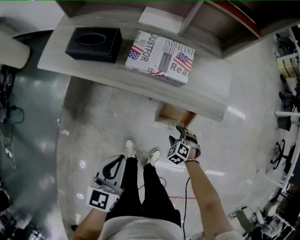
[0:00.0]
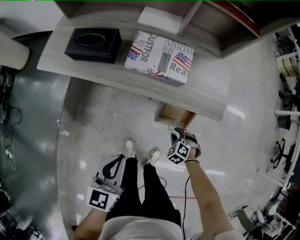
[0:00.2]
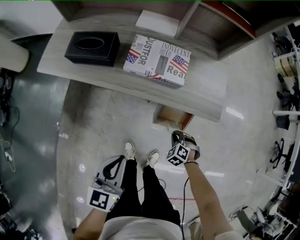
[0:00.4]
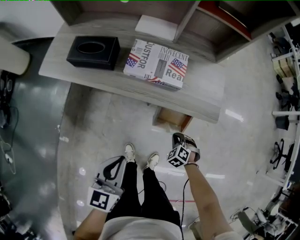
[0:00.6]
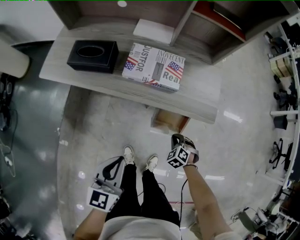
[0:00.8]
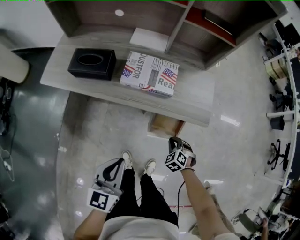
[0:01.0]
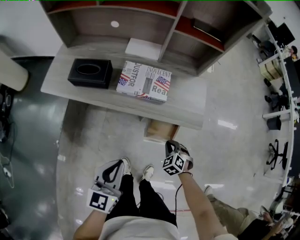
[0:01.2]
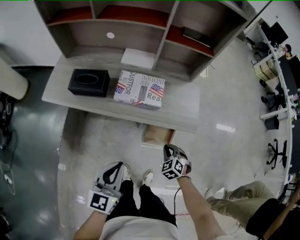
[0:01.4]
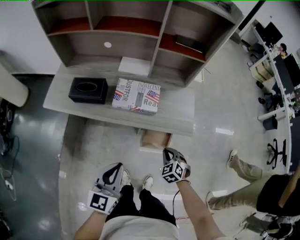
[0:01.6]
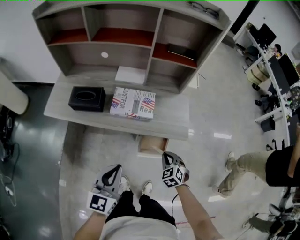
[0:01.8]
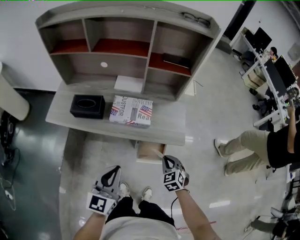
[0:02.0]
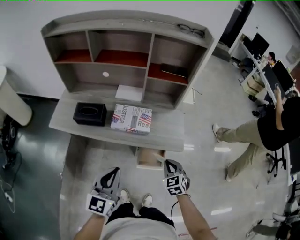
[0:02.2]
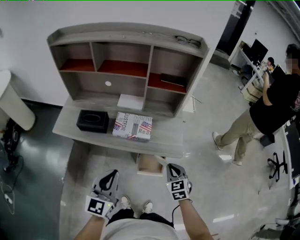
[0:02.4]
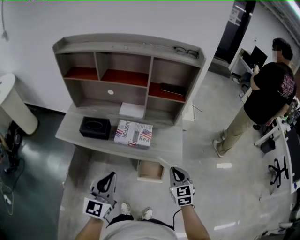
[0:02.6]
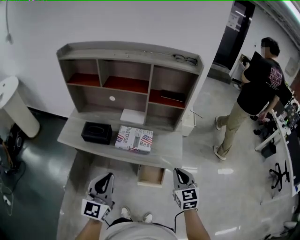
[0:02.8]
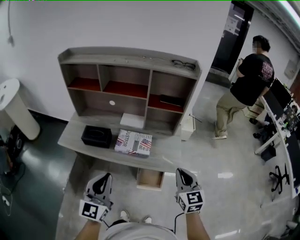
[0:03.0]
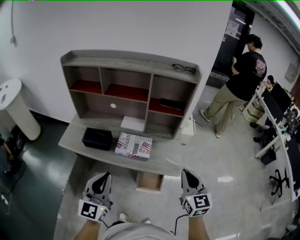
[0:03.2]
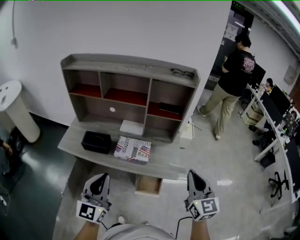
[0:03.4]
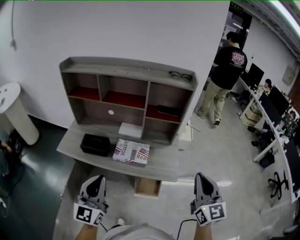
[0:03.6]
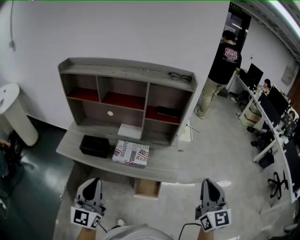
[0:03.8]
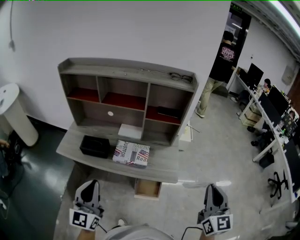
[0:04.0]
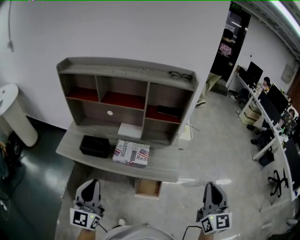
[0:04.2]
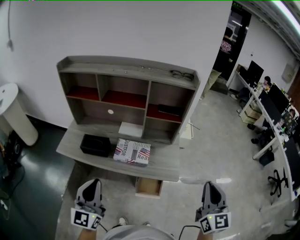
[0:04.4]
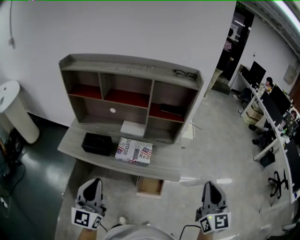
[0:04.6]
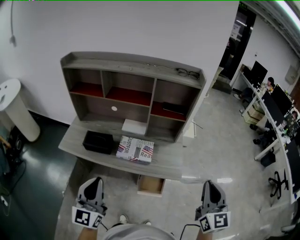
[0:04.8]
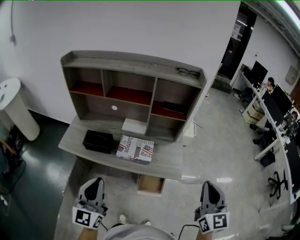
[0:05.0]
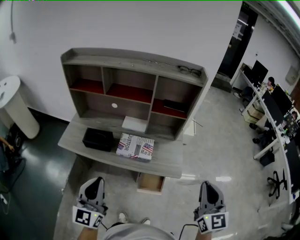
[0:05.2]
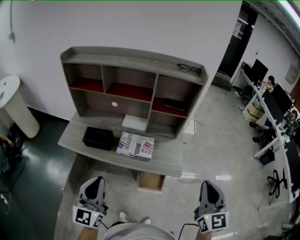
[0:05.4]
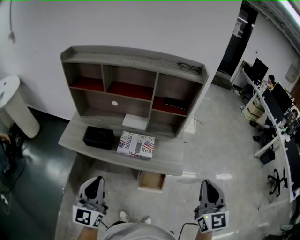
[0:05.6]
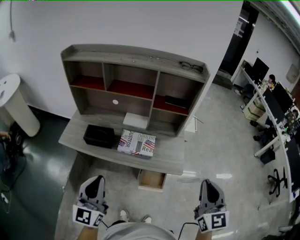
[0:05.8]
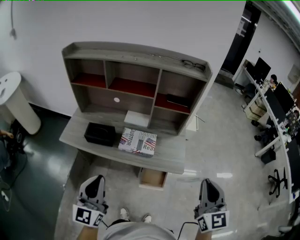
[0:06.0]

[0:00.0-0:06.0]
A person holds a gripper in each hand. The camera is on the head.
0:00.0 to 0:01.6: The left gripper goes approximately 10 cm upward; the right gripper moves upward, some 20 cm, rotates about 30 degrees, and closes up.
0:01.6 to 0:03.0: The right gripper moves upward, approximately 35 cm, and points its fingers some 40 degrees further upward. Meanwhile the left gripper is displaced upward by approximately 15 cm, and turns by about 20 degrees.
0:03.0 to 0:04.4: The left gripper shifts by approximately 5 cm; the right gripper travels upward, to the right and backward by approximately 15 cm.
0:04.4 to 0:06.0: The right gripper ends up approximately 5 cm from where it was.

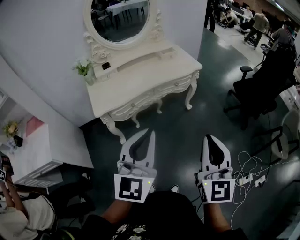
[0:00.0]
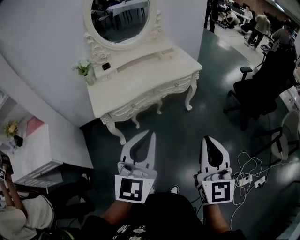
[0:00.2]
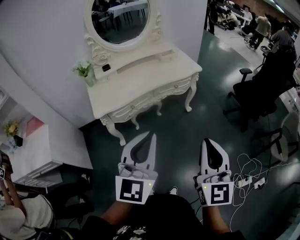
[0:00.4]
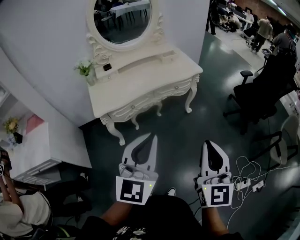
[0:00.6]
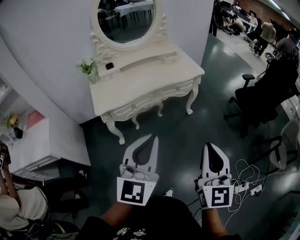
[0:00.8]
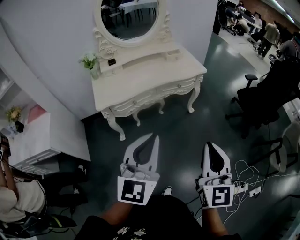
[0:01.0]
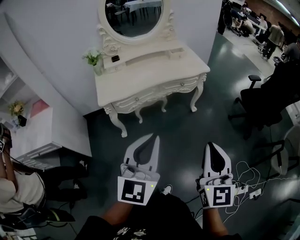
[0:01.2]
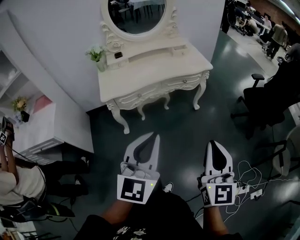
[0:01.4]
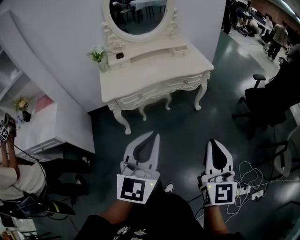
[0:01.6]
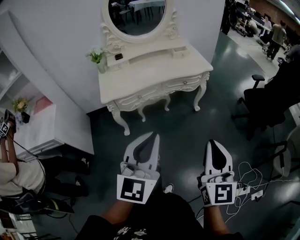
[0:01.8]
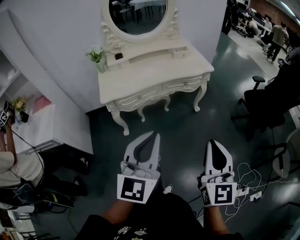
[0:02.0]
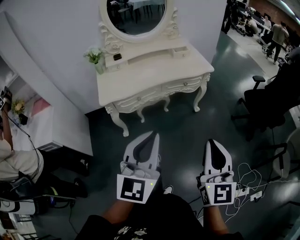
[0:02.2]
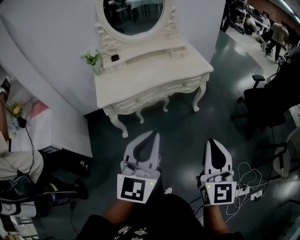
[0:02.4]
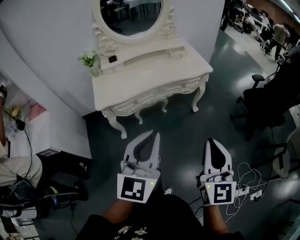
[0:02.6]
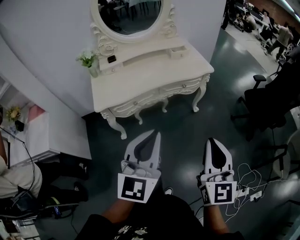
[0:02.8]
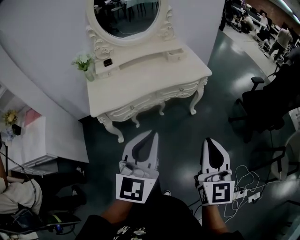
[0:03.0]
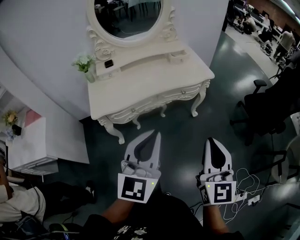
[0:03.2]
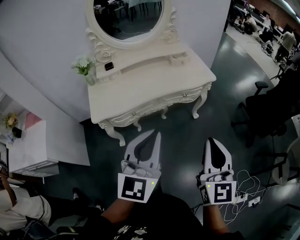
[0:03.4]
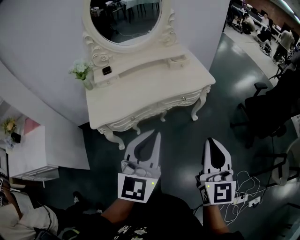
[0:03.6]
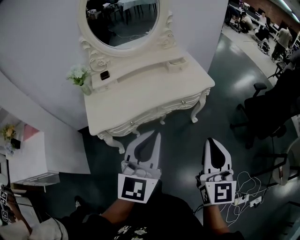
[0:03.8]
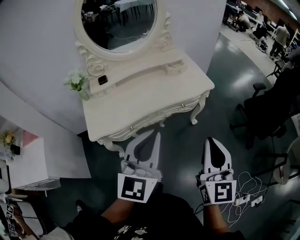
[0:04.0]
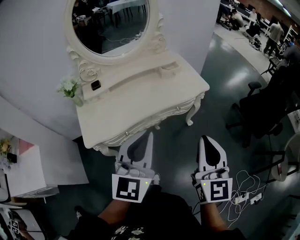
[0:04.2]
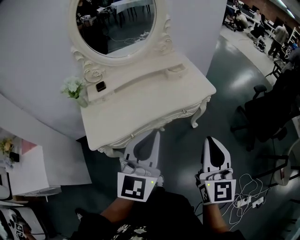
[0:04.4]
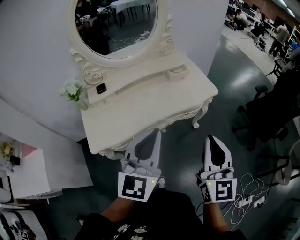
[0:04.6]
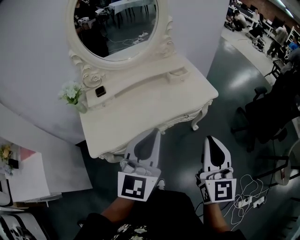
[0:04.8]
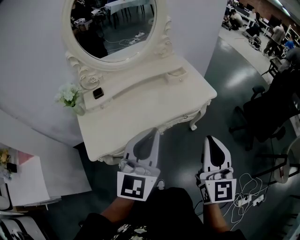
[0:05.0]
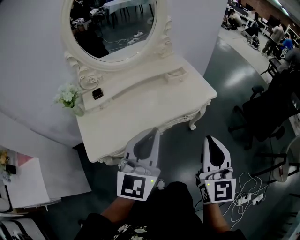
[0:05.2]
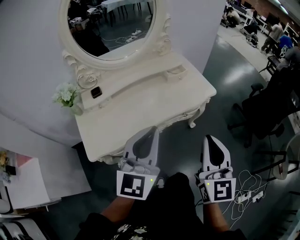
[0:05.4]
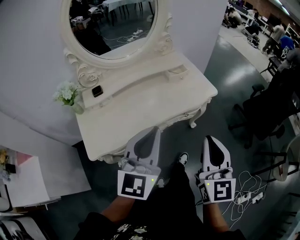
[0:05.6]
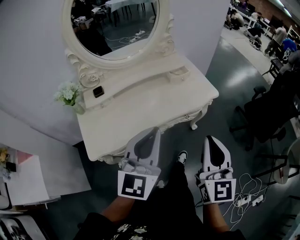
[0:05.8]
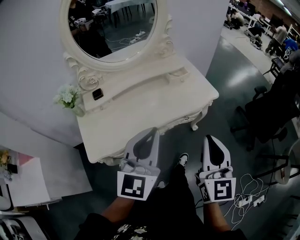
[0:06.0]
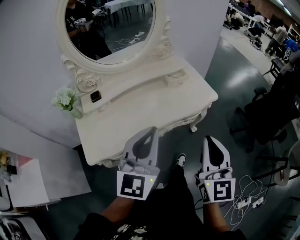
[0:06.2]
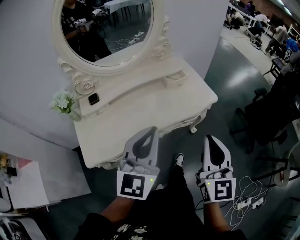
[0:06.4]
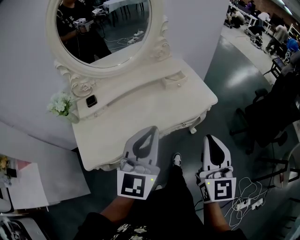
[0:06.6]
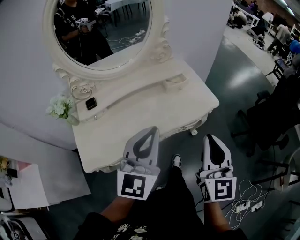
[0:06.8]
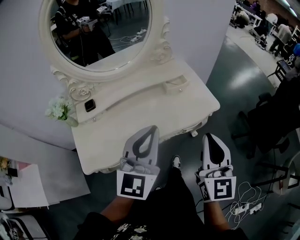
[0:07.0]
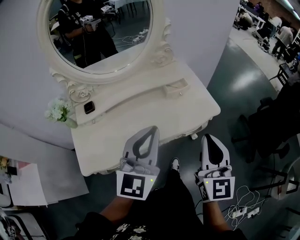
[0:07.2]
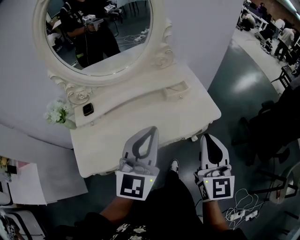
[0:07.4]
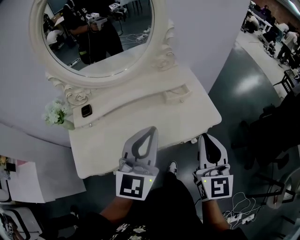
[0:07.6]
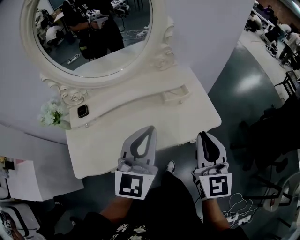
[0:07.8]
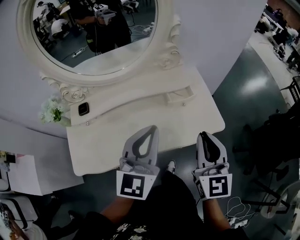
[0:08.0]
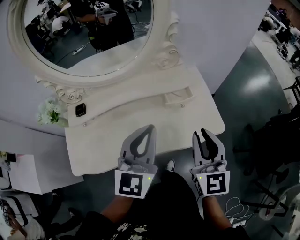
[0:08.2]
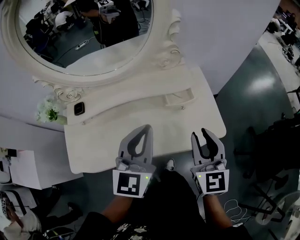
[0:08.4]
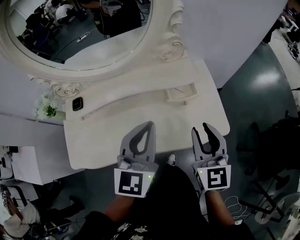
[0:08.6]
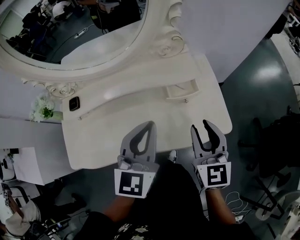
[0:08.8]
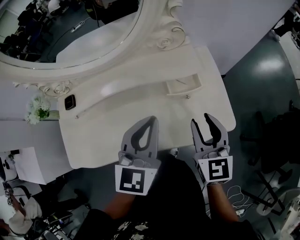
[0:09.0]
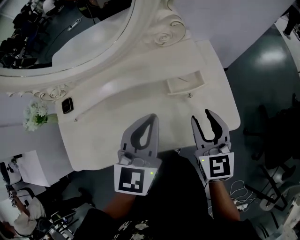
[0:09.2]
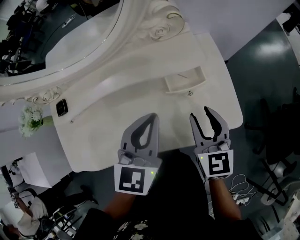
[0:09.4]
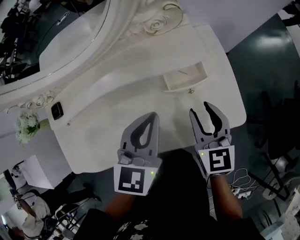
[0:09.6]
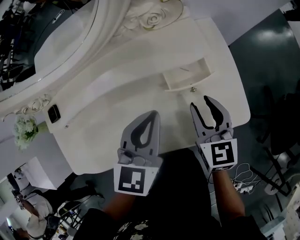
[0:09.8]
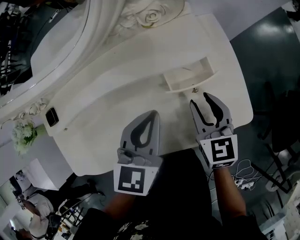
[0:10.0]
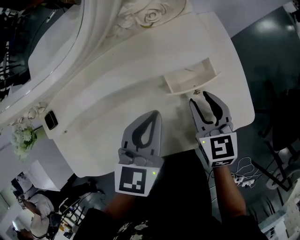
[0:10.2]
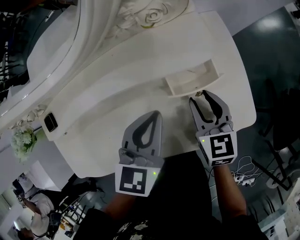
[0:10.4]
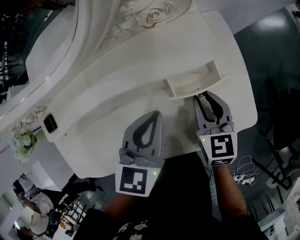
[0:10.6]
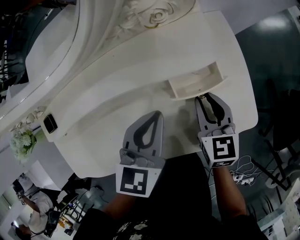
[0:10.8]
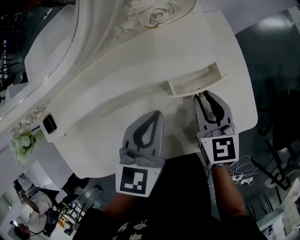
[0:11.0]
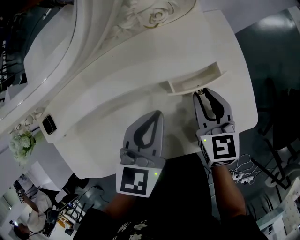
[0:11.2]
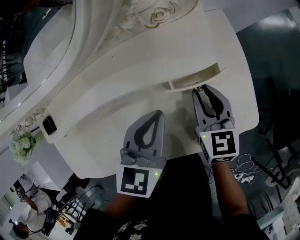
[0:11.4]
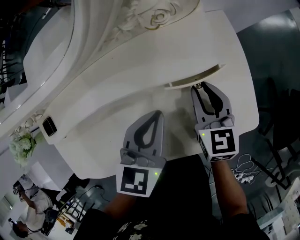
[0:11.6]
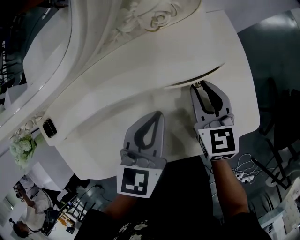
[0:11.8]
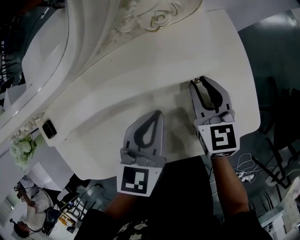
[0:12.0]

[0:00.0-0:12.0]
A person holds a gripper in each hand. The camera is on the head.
0:00.0 to 0:01.6: The right gripper shifts by approximately 5 cm, while the left gripper ends up about 5 cm from where it was.
0:01.6 to 0:03.0: Both grippers move forward, some 10 cm.
0:03.0 to 0:04.4: The grippers both shift forward by roughly 15 cm.
0:04.4 to 0:06.0: Both grippers travel together forward, about 5 cm.
0:06.0 to 0:07.6: Both grippers travel together forward, approximately 20 cm.
0:07.6 to 0:09.0: Both grippers move forward and downward, some 20 cm. The right gripper swivels approximately 20 degrees, and opens its fingers.
0:09.0 to 0:10.4: Both grippers travel together downward and forward, roughly 15 cm.
0:10.4 to 0:12.0: The right gripper shifts about 5 cm forward.

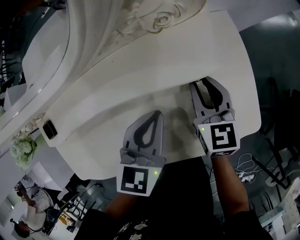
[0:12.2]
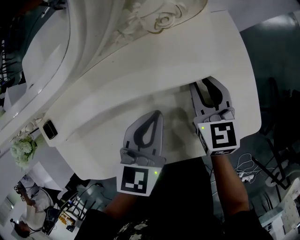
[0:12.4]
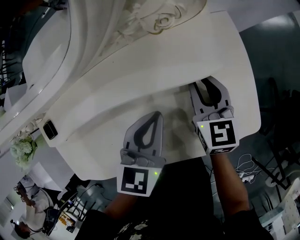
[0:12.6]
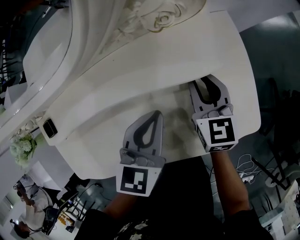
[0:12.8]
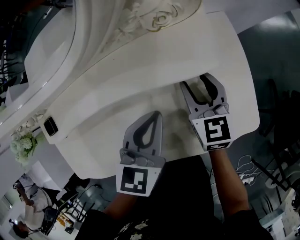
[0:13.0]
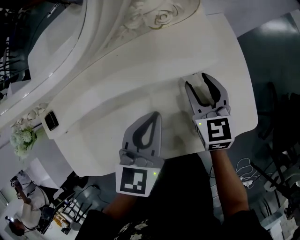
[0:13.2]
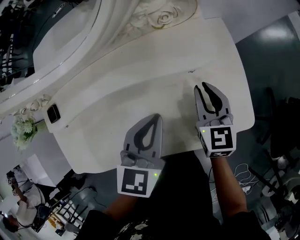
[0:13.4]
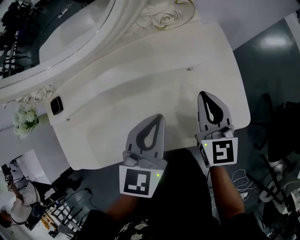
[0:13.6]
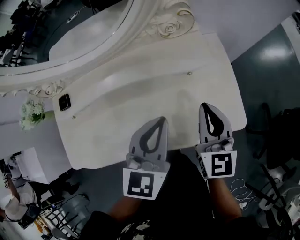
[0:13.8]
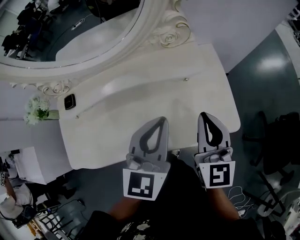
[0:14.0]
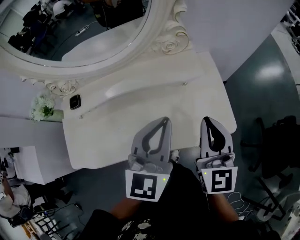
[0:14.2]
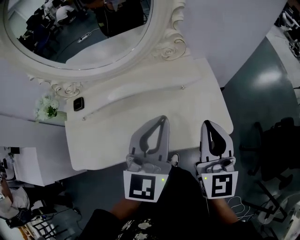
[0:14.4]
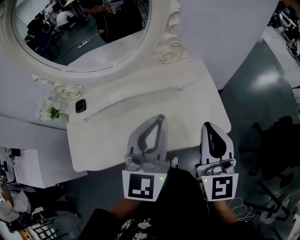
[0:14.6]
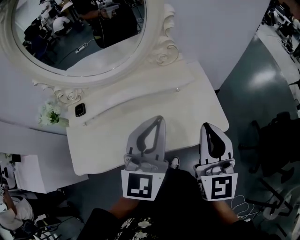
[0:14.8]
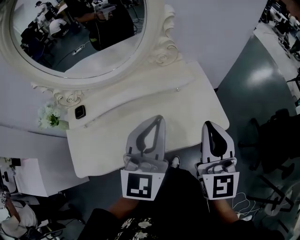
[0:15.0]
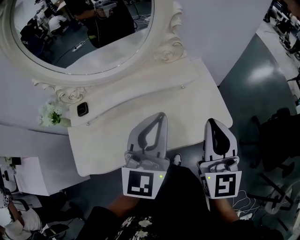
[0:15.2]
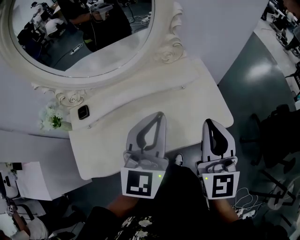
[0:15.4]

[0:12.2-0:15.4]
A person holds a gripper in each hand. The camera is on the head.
0:12.2 to 0:13.8: Both grippers move upward and backward, about 15 cm. The right gripper closes its fingers.
0:13.8 to 0:15.4: The right gripper moves upward and backward, some 20 cm. The left gripper is displaced upward by approximately 15 cm, and swivels roughly 20 degrees.

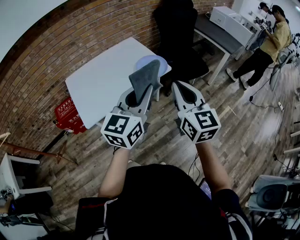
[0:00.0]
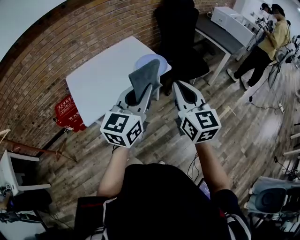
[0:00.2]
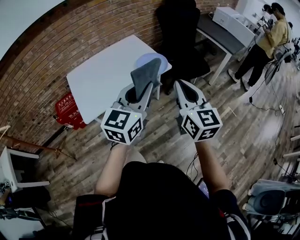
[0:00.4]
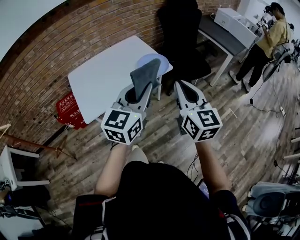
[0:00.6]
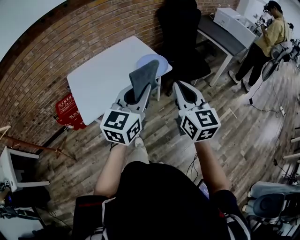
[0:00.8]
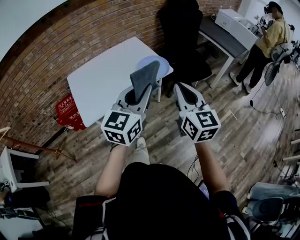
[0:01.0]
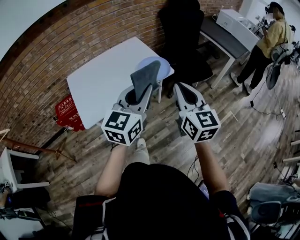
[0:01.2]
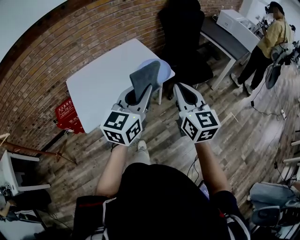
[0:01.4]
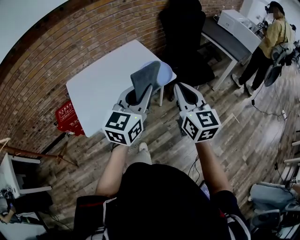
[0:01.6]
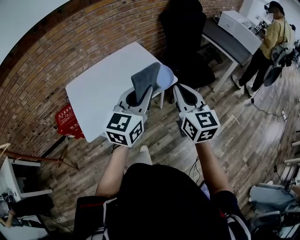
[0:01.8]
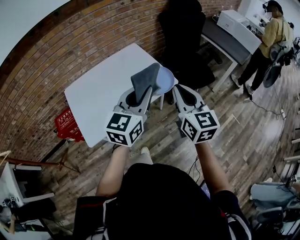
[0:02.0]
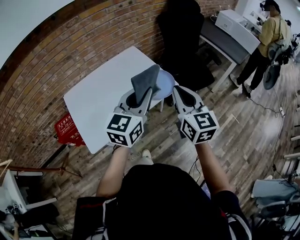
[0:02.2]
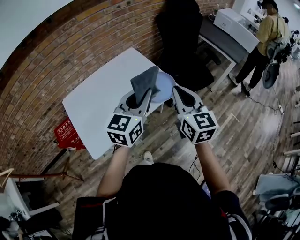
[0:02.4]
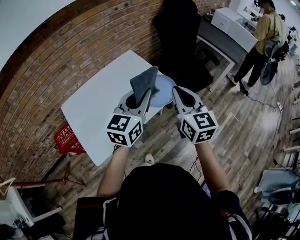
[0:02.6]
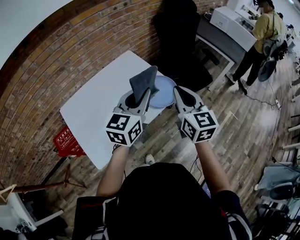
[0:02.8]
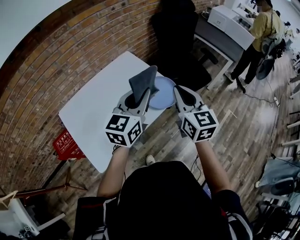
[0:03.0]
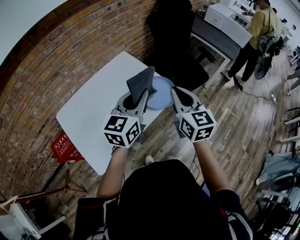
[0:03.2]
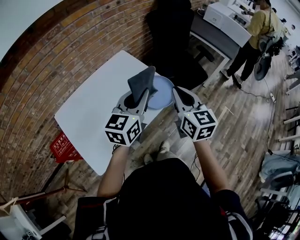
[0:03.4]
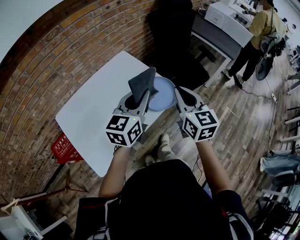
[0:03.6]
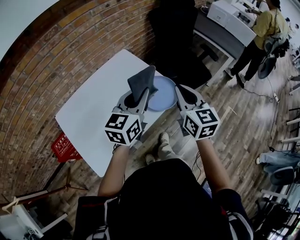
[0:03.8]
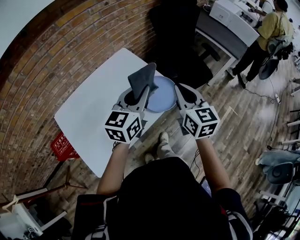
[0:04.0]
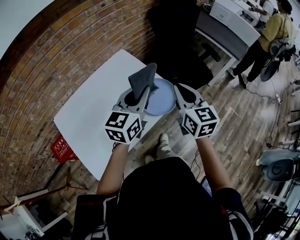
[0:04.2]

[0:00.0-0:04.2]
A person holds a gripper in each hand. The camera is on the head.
0:00.0 to 0:01.4: Both grippers travel together forward, approximately 5 cm.
0:01.4 to 0:02.8: The two grippers go roughly 20 cm forward and to the left.
0:02.8 to 0:04.2: The grippers both shift forward by roughly 10 cm.
